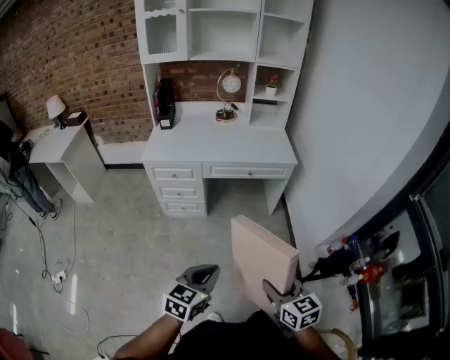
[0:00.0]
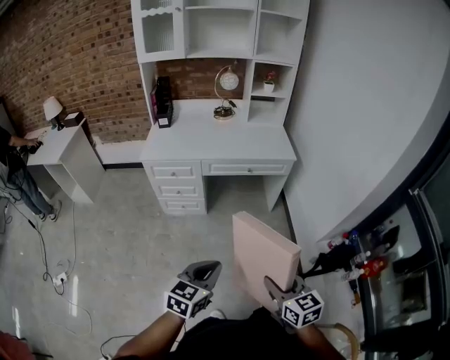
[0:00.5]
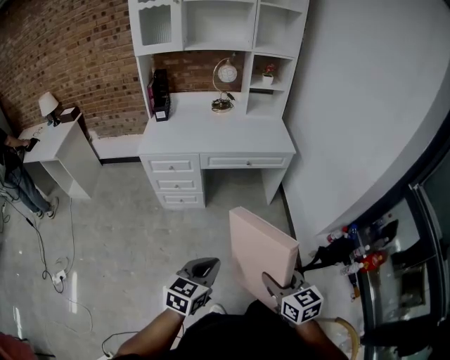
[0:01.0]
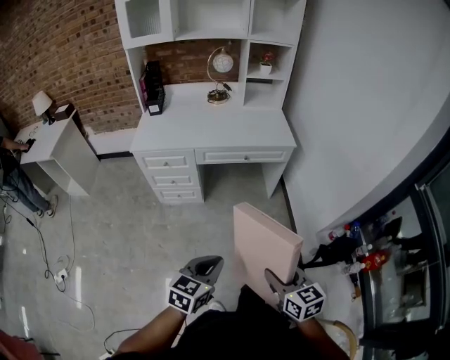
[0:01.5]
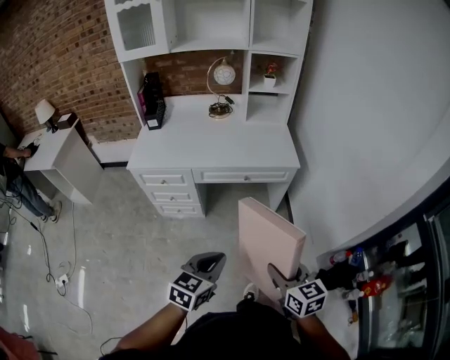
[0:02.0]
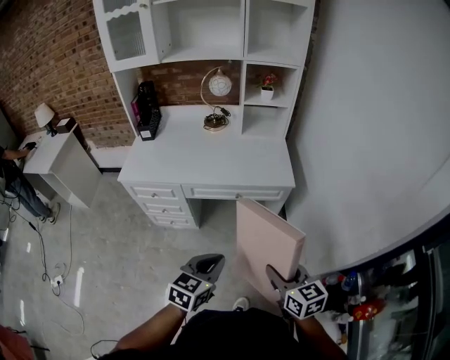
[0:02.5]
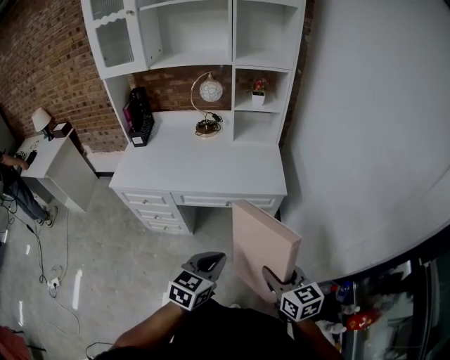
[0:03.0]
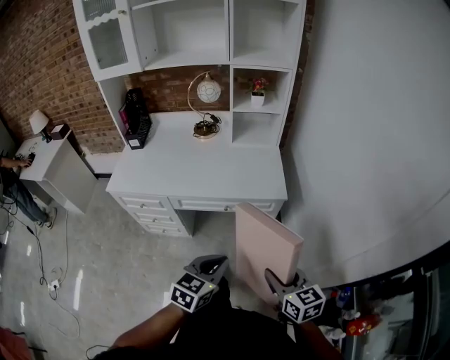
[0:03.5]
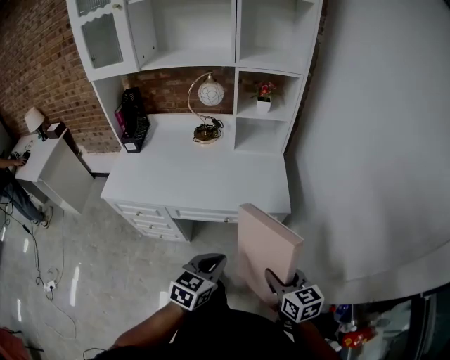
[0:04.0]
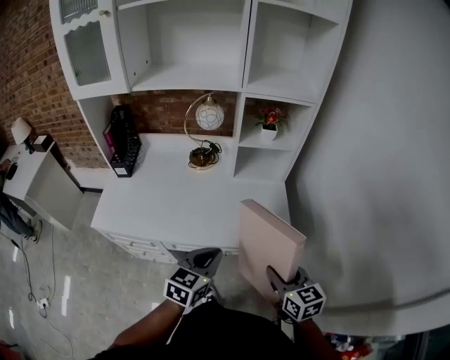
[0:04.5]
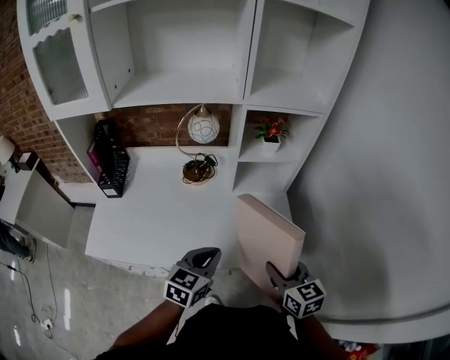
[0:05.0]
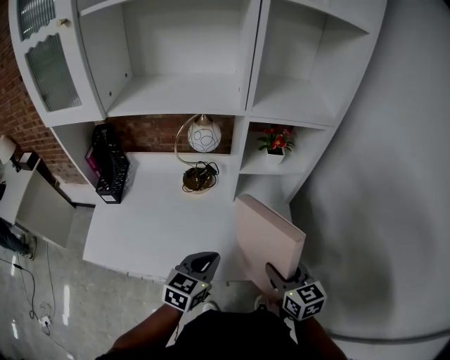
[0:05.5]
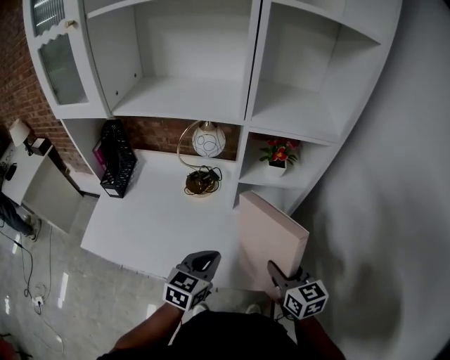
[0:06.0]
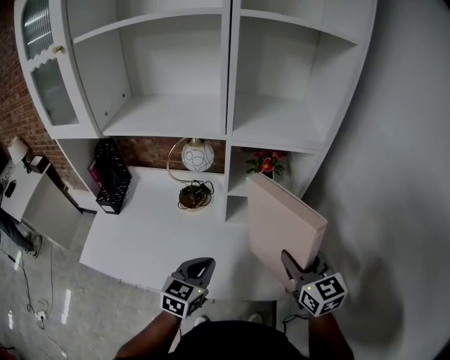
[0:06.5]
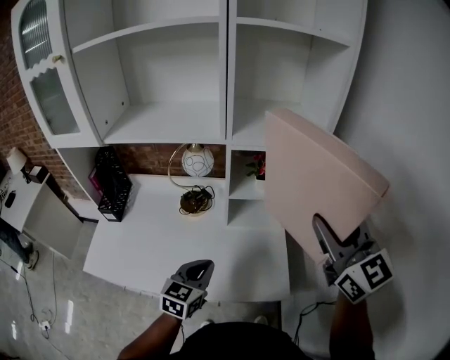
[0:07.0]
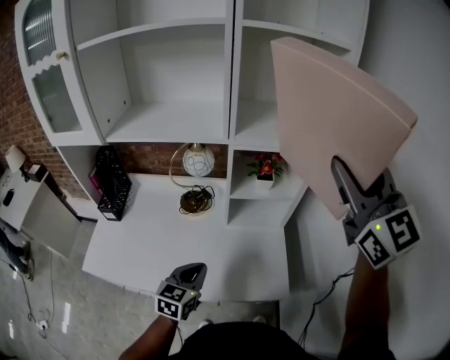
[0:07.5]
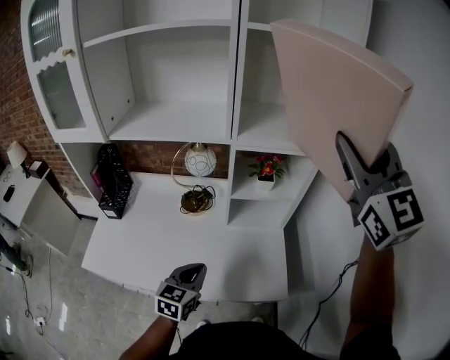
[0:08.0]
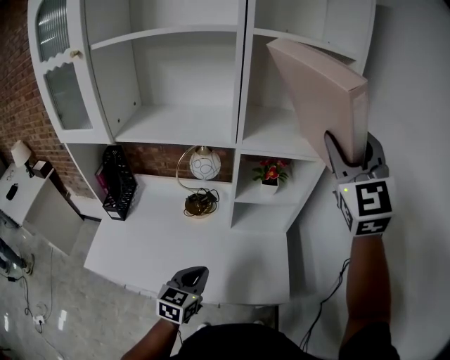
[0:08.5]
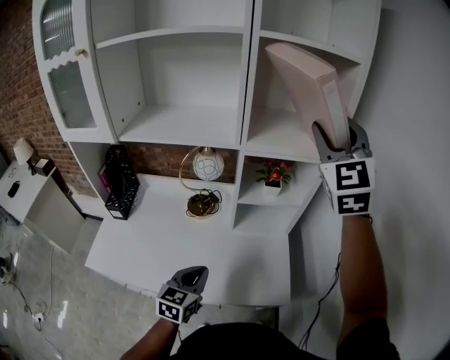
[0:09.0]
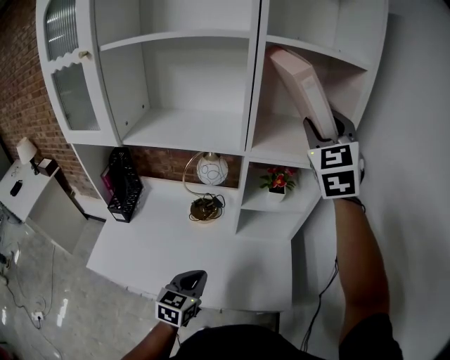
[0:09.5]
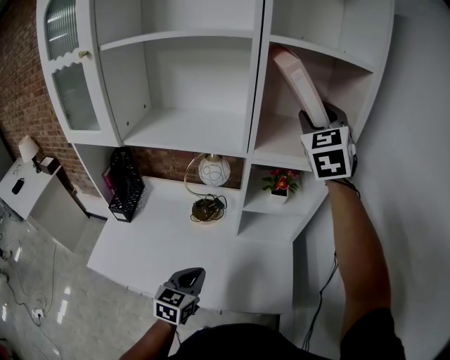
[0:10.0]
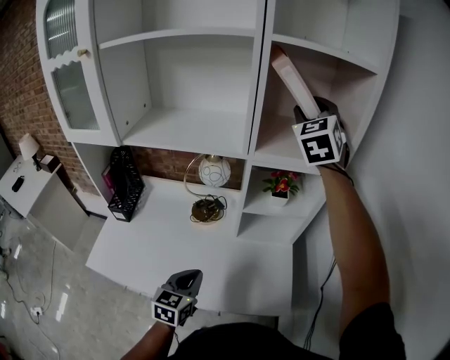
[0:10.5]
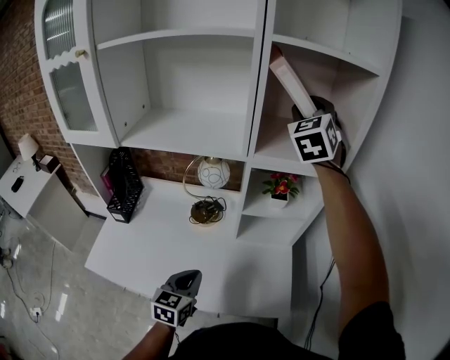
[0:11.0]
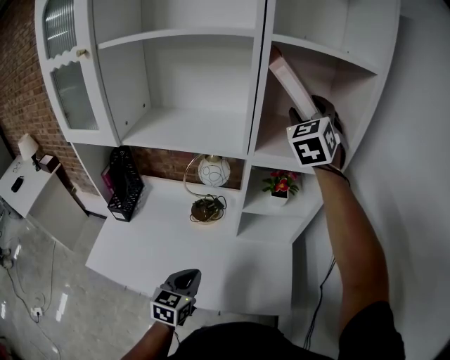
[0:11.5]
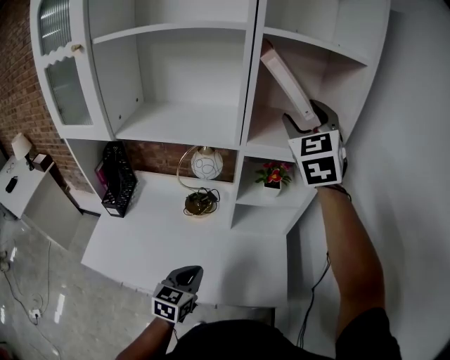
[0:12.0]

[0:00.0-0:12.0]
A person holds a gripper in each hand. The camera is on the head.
0:00.0 to 0:02.0: The grippers both shift forward by about 20 cm.
0:02.0 to 0:04.0: The right gripper moves forward, approximately 25 cm. Meanwhile the left gripper moves forward and to the right, approximately 30 cm.
0:04.0 to 0:06.0: Both grippers move forward, about 35 cm.
0:06.0 to 0:08.0: The right gripper shifts about 40 cm upward, and tilts its fingers approximately 30 degrees upward.
0:08.0 to 0:10.0: The right gripper travels forward and to the left by some 20 cm, and turns by approximately 20 degrees.
0:10.0 to 0:12.0: The right gripper reaches roughly 5 cm forward, then returns.

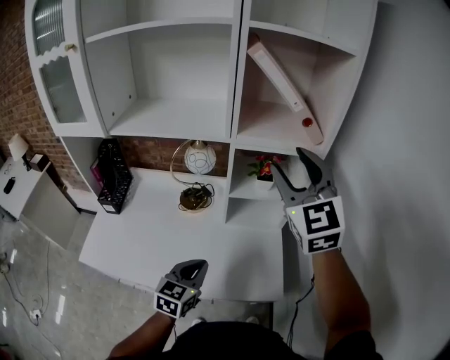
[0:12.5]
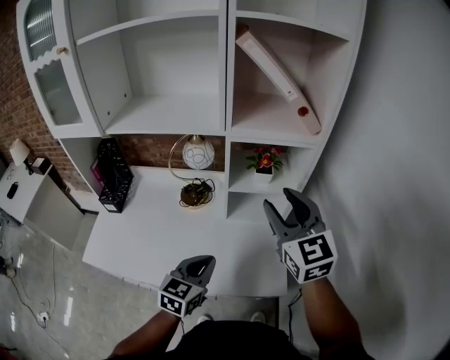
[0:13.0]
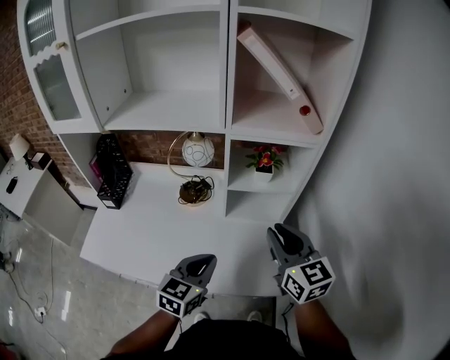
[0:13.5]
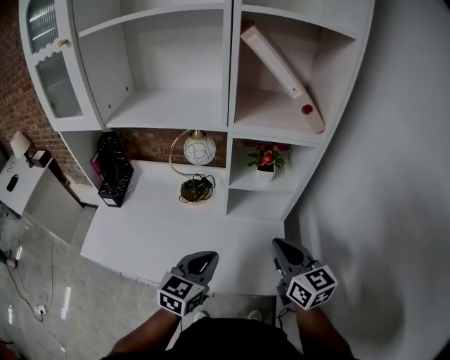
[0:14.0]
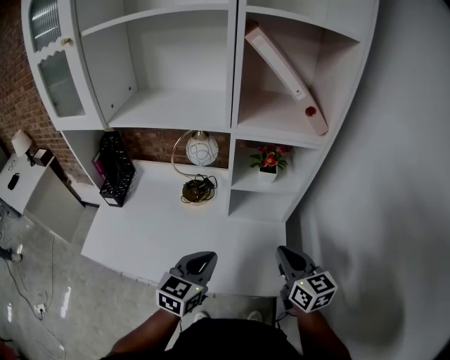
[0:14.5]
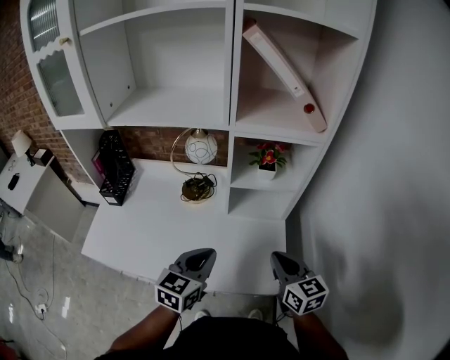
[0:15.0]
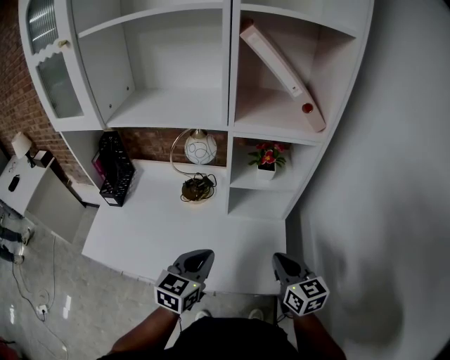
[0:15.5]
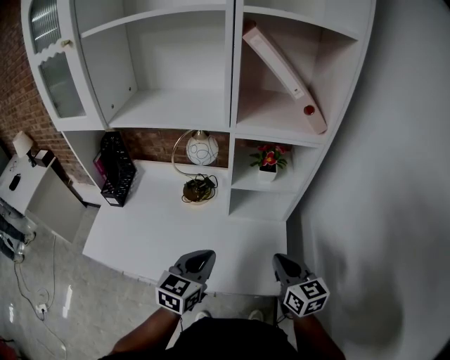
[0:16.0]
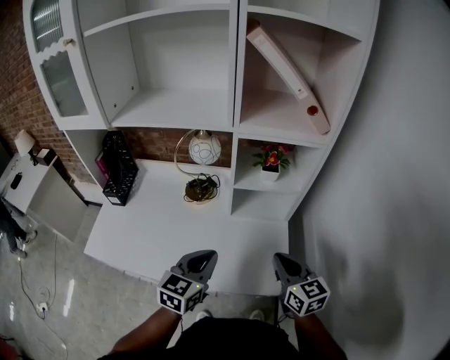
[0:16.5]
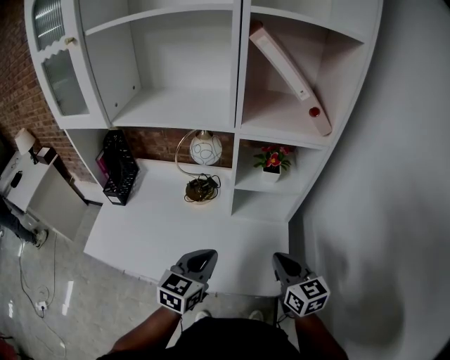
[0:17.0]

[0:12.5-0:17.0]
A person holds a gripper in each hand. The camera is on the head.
0:12.5 to 0:14.5: The right gripper goes some 25 cm downward and backward, turns by some 40 degrees, and closes.
0:14.5 to 0:17.0: The grippers move only a little.

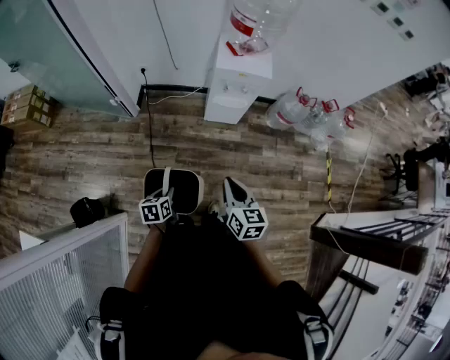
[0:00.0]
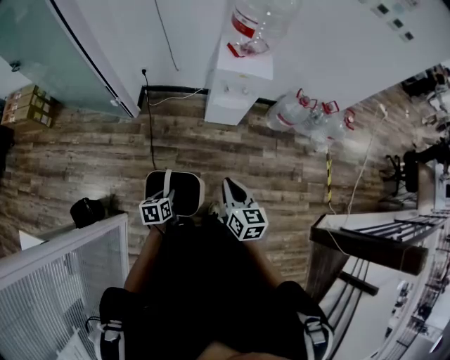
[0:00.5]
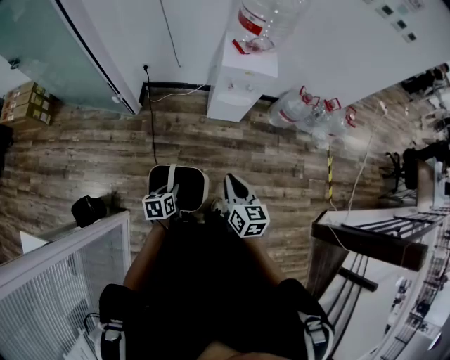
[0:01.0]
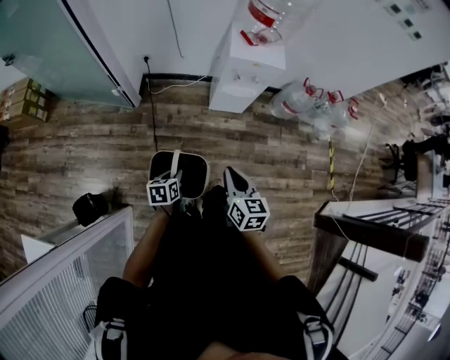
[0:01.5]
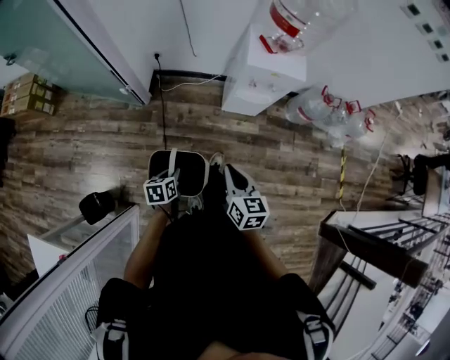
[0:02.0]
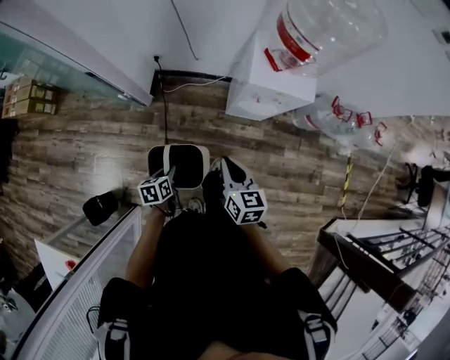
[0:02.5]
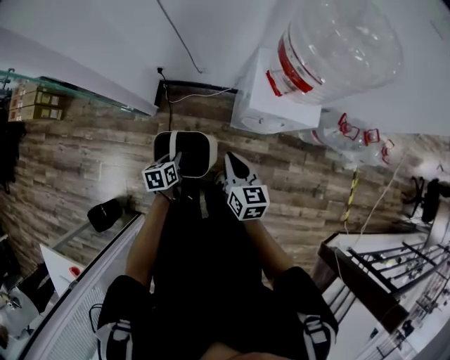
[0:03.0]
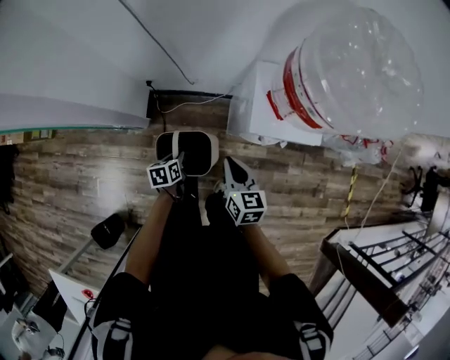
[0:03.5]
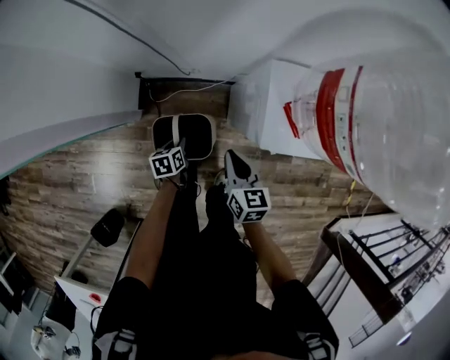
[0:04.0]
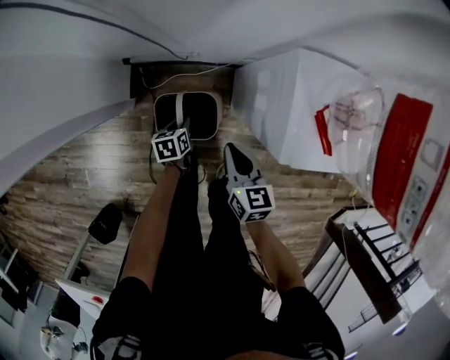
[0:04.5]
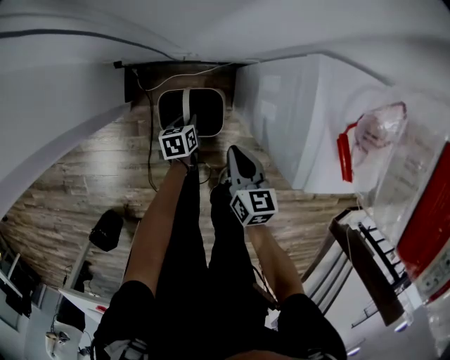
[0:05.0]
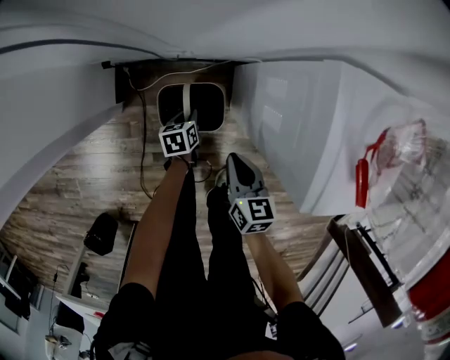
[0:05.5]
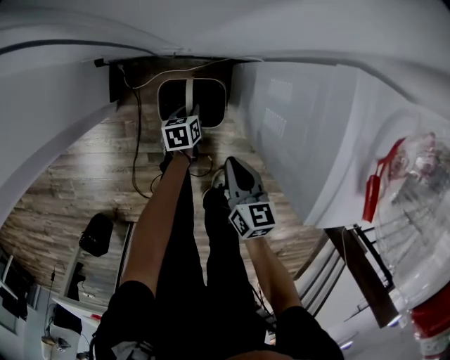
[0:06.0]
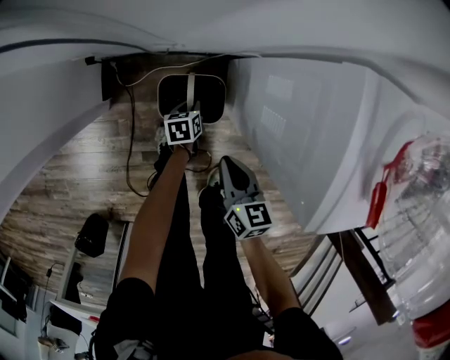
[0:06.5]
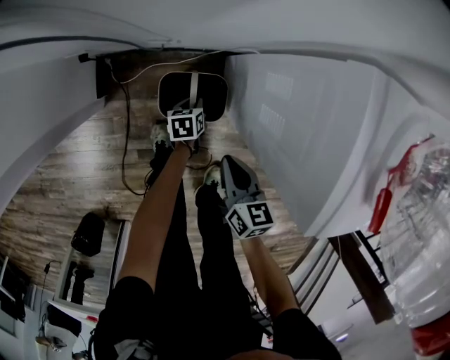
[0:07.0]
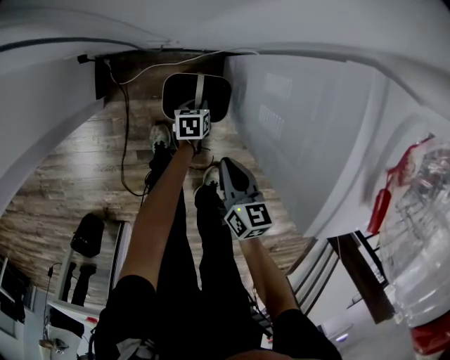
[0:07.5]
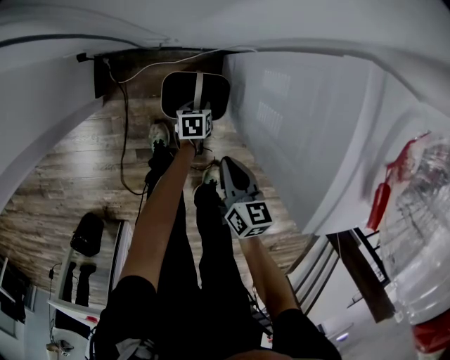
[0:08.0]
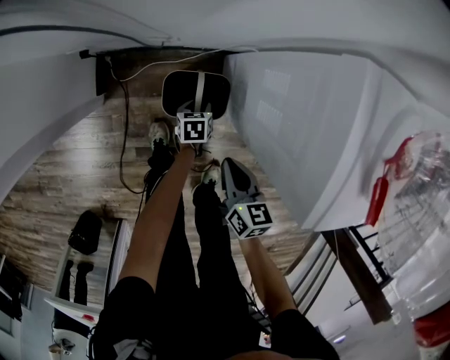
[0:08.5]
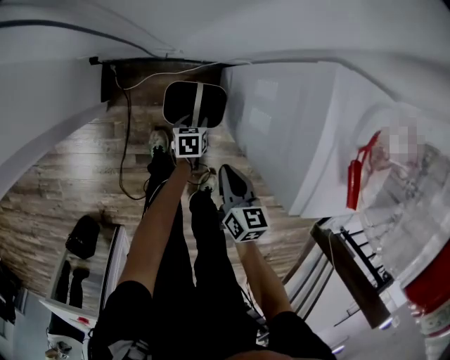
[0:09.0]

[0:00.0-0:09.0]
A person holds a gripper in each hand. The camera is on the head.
0:00.0 to 0:02.0: The left gripper shifts roughly 15 cm forward and to the left. Meanwhile the right gripper shifts some 15 cm to the left and forward.
0:02.0 to 0:04.5: Both grippers are carried forward, approximately 50 cm. Both grippers move downward, about 25 cm.
0:04.5 to 0:07.0: The left gripper is displaced downward and to the right by roughly 25 cm. The right gripper heads downward, covering some 15 cm.
0:07.0 to 0:09.0: The left gripper ends up about 5 cm from where it was, and opens up.

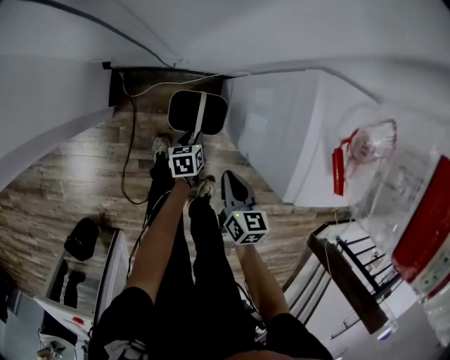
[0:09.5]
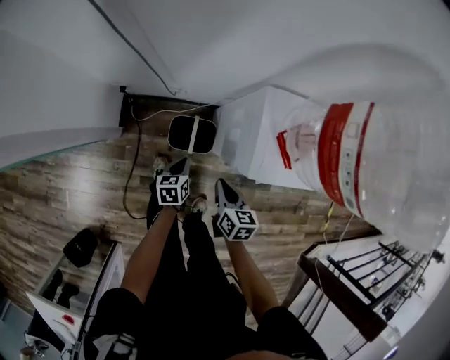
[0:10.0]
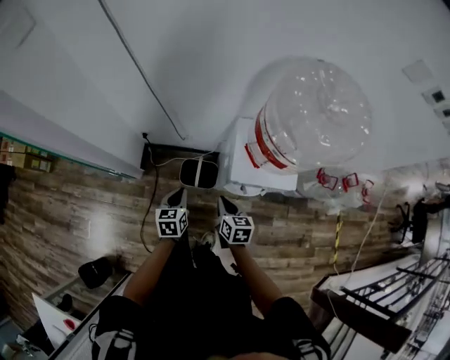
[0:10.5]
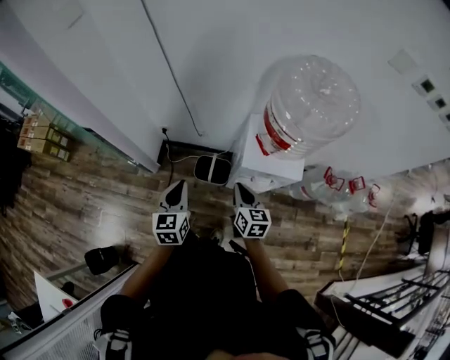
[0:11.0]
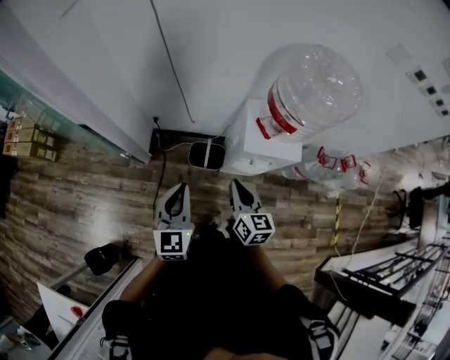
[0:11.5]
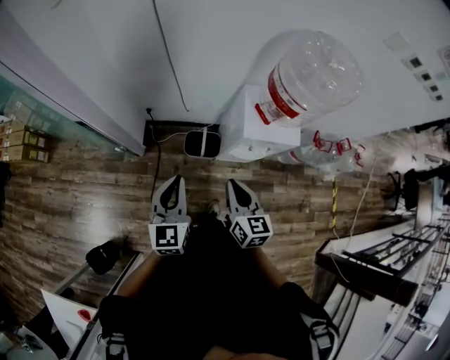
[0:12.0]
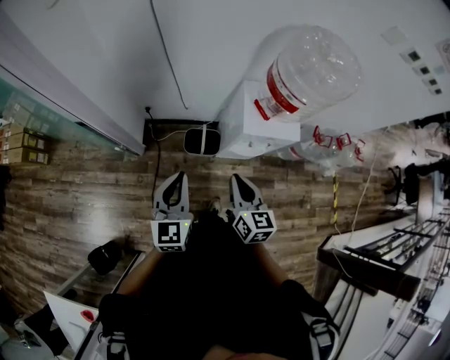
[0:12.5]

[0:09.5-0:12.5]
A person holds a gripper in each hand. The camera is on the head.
0:09.5 to 0:11.0: The left gripper moves upward, approximately 60 cm, tilts its fingers some 30 degrees upward, and closes its fingers. The right gripper shifts approximately 30 cm upward, and changes its angle by roughly 20 degrees.
0:11.0 to 0:12.5: The left gripper goes roughly 5 cm upward; the right gripper shifts roughly 15 cm upward, to the left and backward.
